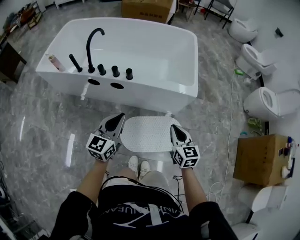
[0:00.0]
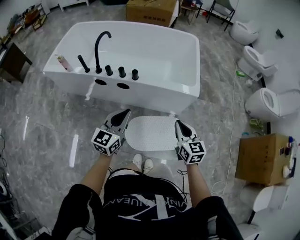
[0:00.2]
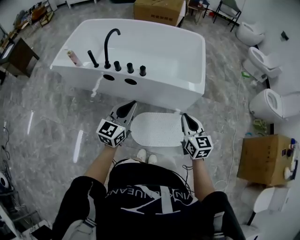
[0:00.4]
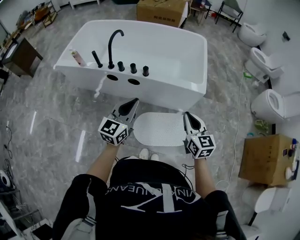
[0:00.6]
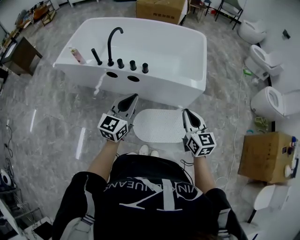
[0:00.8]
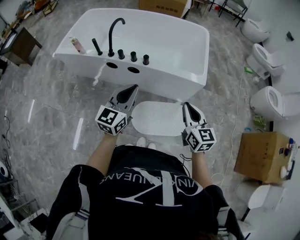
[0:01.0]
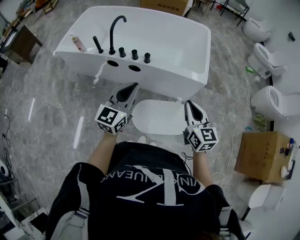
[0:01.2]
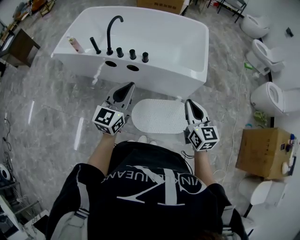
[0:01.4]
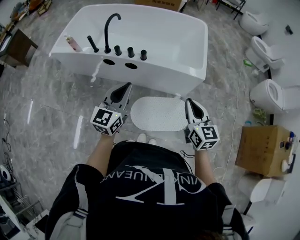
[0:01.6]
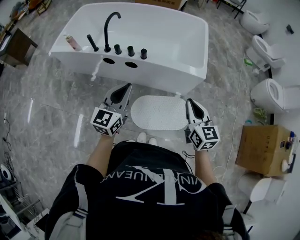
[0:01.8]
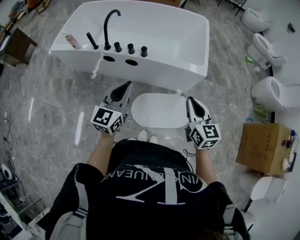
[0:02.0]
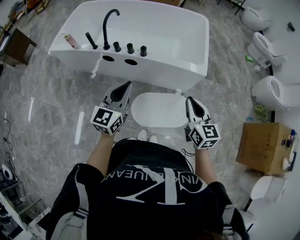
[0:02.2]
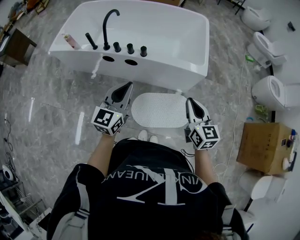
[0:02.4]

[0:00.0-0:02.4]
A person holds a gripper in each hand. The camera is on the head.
0.0 to 1.2 s: The two grippers go approximately 15 cm upward.
1.2 to 2.4 s: There are only small adjustments of the grippers.

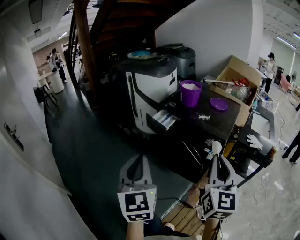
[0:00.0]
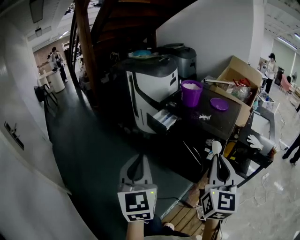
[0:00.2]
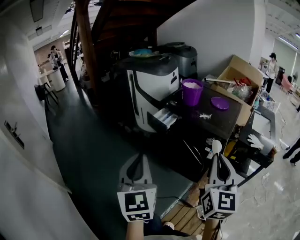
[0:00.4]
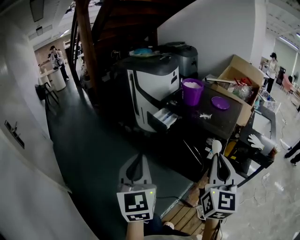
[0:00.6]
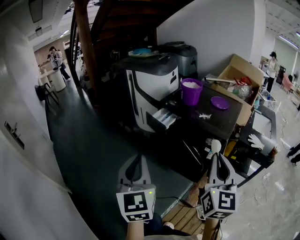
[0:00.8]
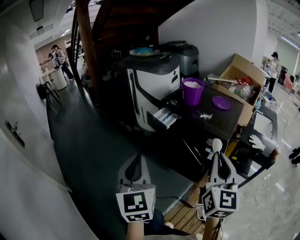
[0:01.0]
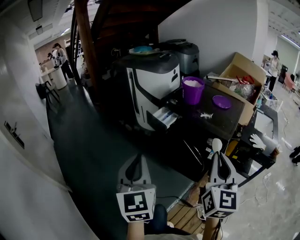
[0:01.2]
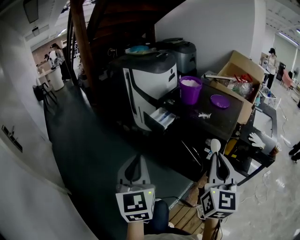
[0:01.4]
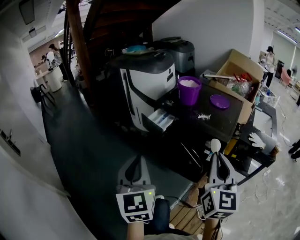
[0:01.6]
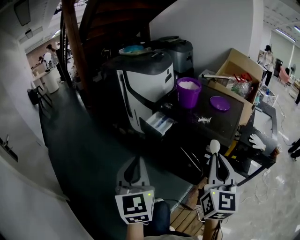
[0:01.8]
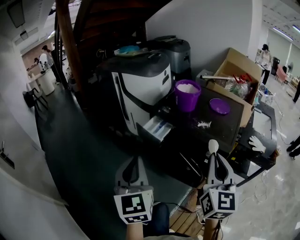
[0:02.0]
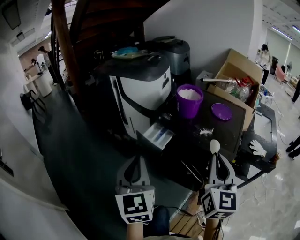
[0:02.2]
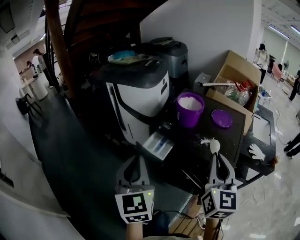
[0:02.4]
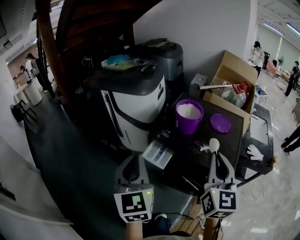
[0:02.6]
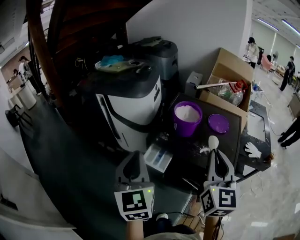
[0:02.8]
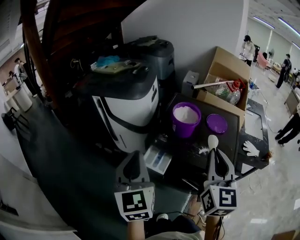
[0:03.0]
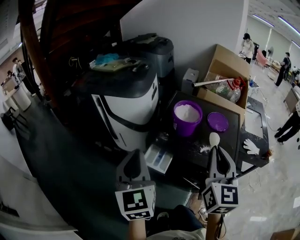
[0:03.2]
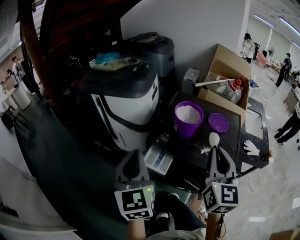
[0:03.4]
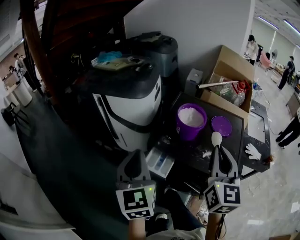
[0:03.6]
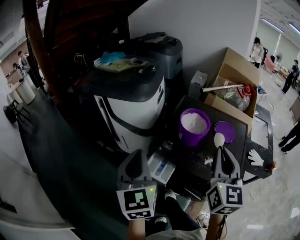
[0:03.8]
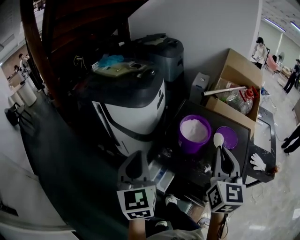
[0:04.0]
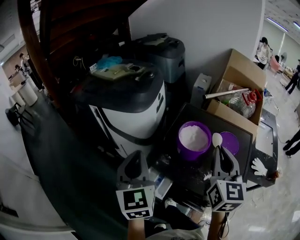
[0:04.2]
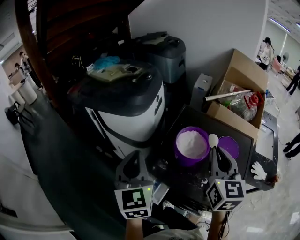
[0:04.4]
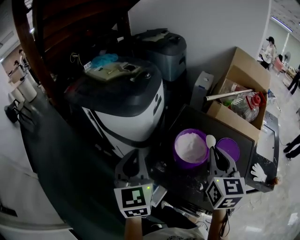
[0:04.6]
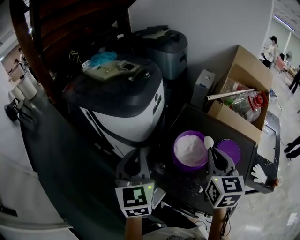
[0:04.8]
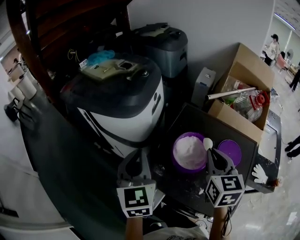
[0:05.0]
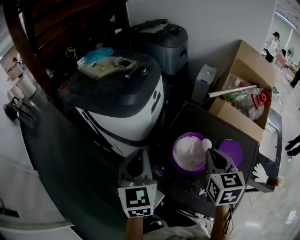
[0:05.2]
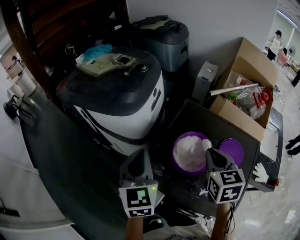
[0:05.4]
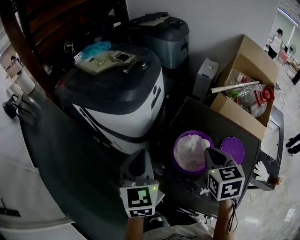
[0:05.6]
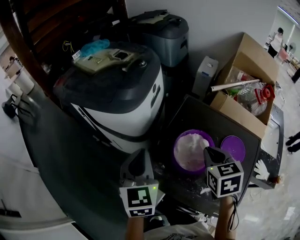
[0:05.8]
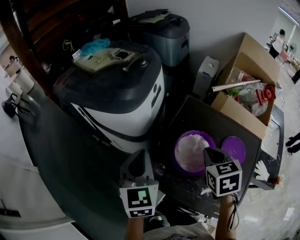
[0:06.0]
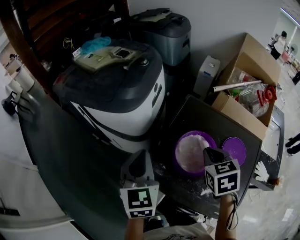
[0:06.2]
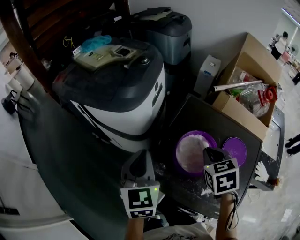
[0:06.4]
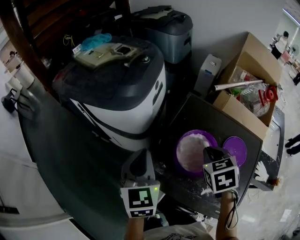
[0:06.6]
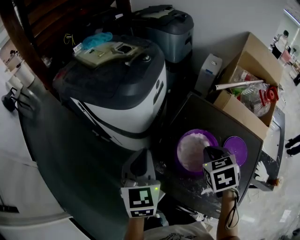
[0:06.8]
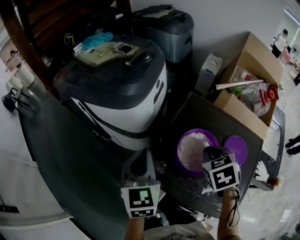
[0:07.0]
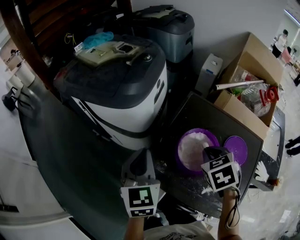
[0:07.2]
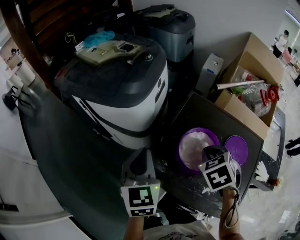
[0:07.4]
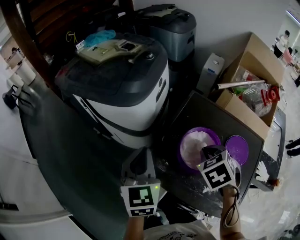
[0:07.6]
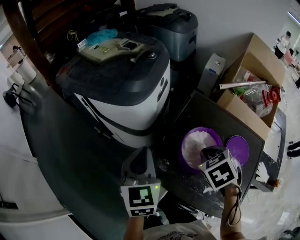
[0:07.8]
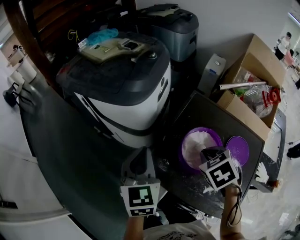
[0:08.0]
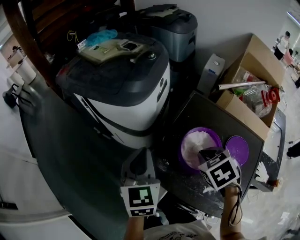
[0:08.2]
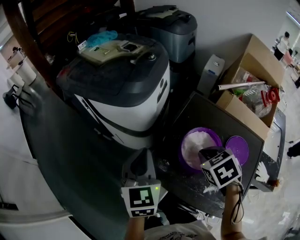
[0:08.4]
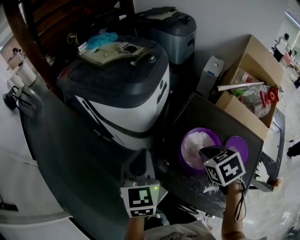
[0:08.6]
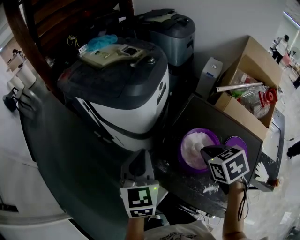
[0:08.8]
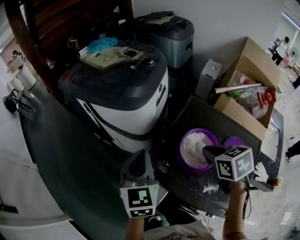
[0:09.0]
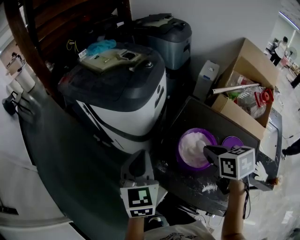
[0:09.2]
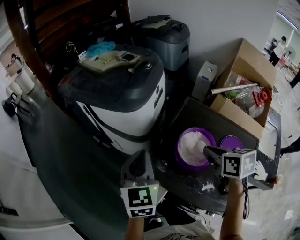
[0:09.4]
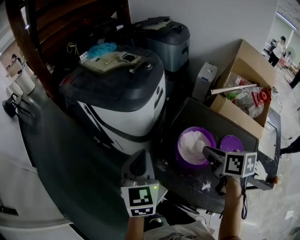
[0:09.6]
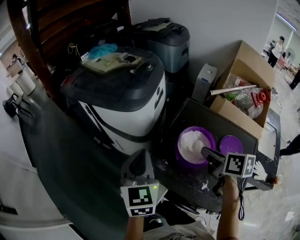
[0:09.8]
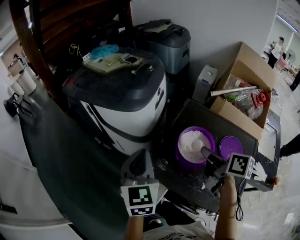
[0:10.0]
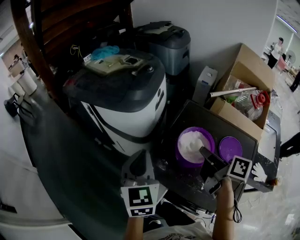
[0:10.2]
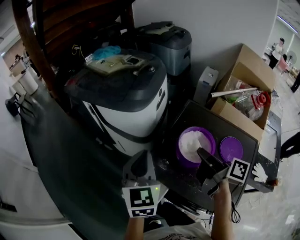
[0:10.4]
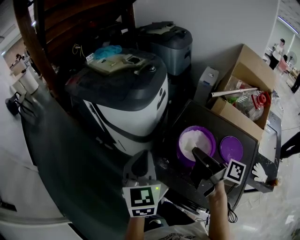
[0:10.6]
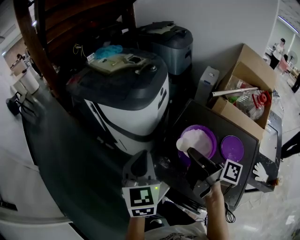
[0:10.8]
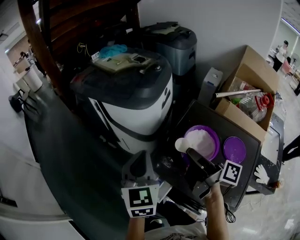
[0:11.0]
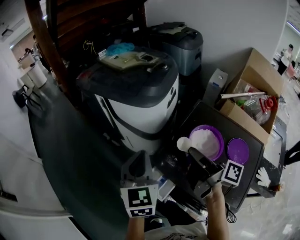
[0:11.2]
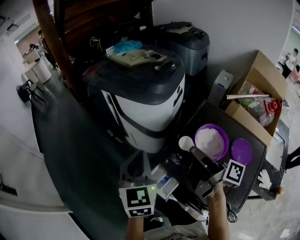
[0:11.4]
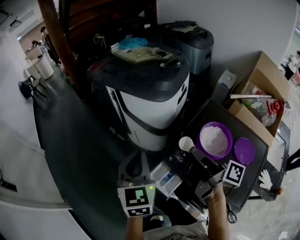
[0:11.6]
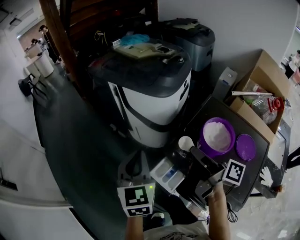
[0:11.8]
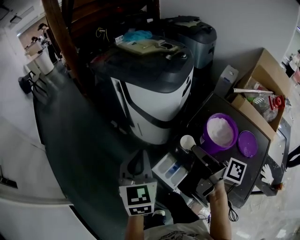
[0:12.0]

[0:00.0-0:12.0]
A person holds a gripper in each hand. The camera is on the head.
0.0 to 1.6 s: The two grippers go about 5 cm forward.
1.6 to 3.0 s: The grippers both shift forward by about 30 cm.
3.0 to 4.4 s: Both grippers travel together forward, about 20 cm.
4.4 to 6.0 s: The right gripper goes approximately 15 cm downward and forward, and tilts its fingers approximately 40 degrees downward, while the left gripper heads forward and downward, covering approximately 10 cm.
6.0 to 7.6 s: The right gripper swivels about 30 degrees.
7.6 to 9.0 s: The right gripper changes its angle by about 30 degrees.
9.0 to 10.4 s: The right gripper moves approximately 5 cm, and points its fingers about 40 degrees further upward.
10.4 to 12.0 s: Both grippers travel together to the left, about 15 cm.

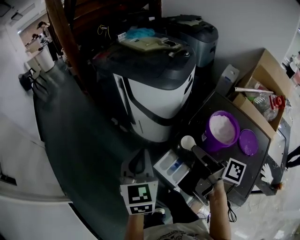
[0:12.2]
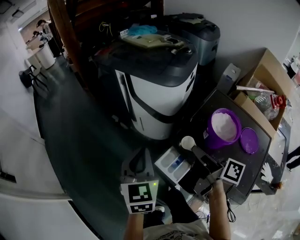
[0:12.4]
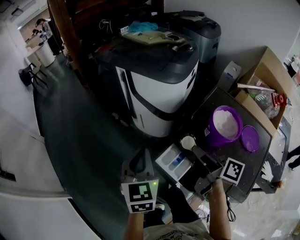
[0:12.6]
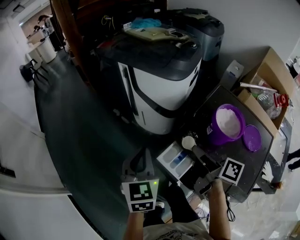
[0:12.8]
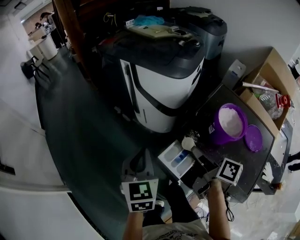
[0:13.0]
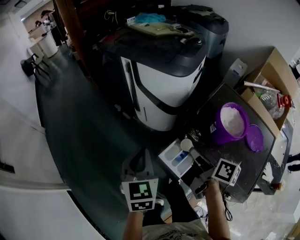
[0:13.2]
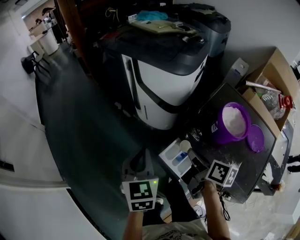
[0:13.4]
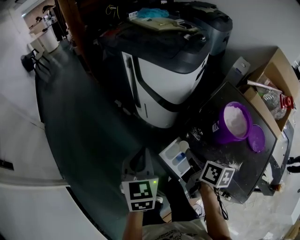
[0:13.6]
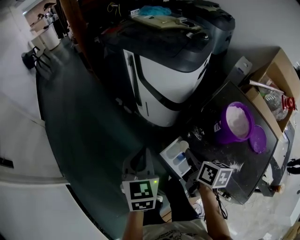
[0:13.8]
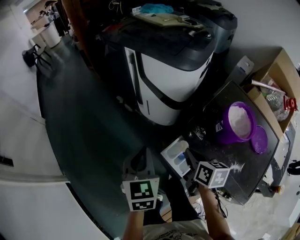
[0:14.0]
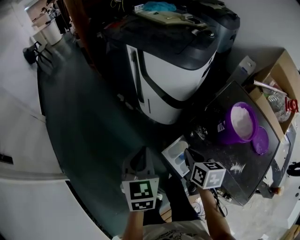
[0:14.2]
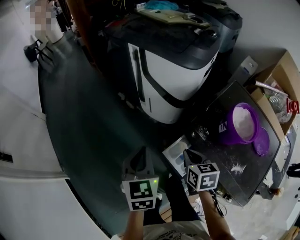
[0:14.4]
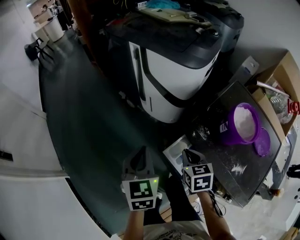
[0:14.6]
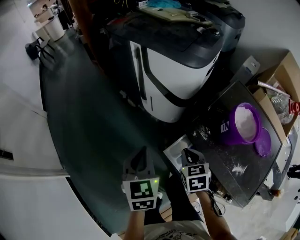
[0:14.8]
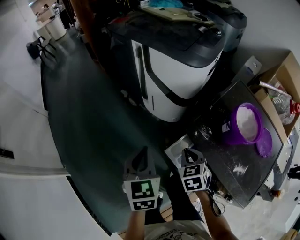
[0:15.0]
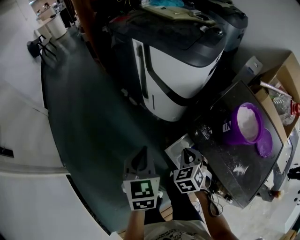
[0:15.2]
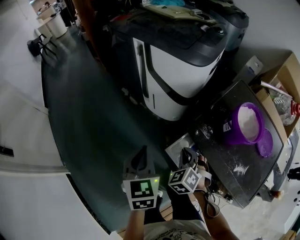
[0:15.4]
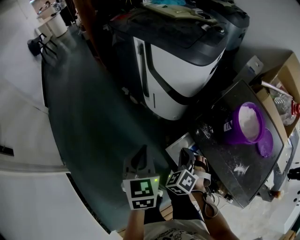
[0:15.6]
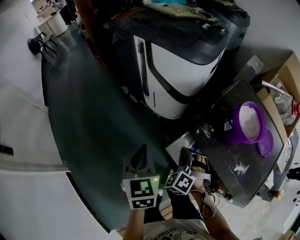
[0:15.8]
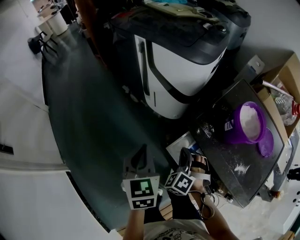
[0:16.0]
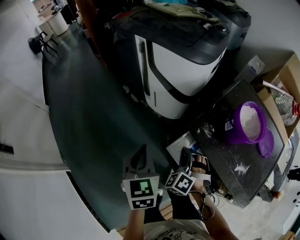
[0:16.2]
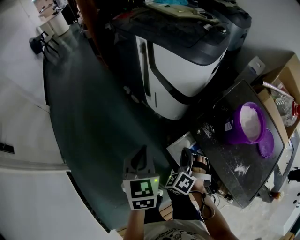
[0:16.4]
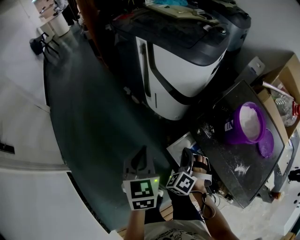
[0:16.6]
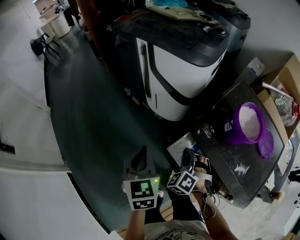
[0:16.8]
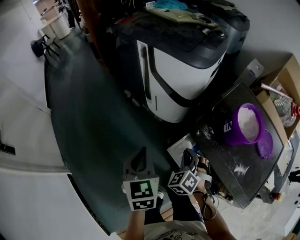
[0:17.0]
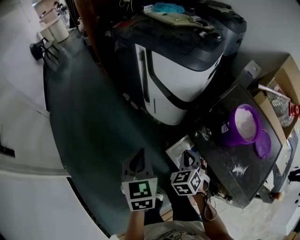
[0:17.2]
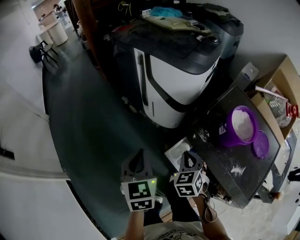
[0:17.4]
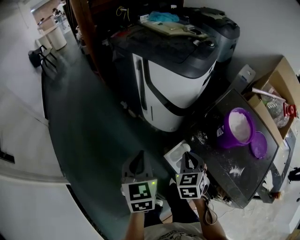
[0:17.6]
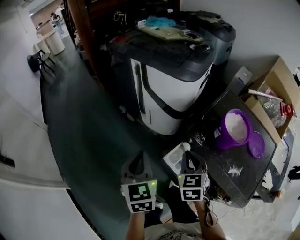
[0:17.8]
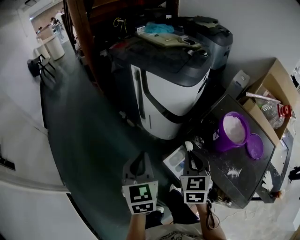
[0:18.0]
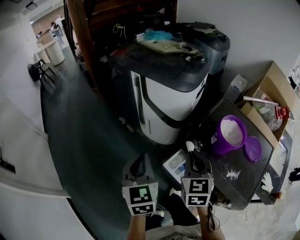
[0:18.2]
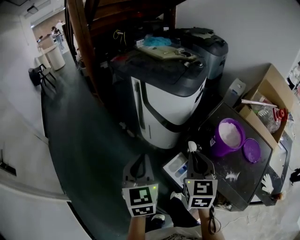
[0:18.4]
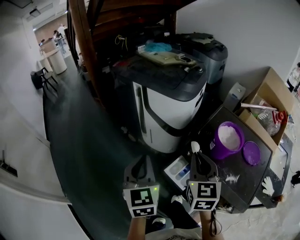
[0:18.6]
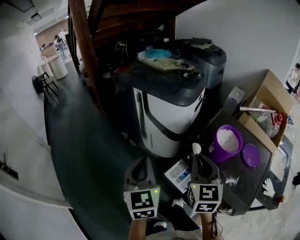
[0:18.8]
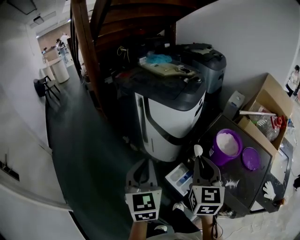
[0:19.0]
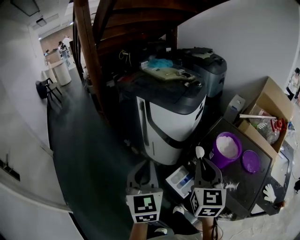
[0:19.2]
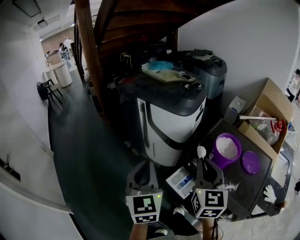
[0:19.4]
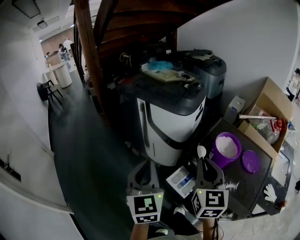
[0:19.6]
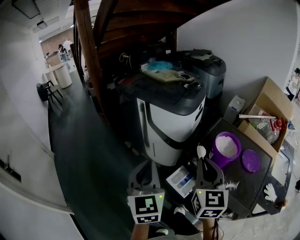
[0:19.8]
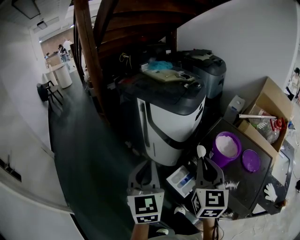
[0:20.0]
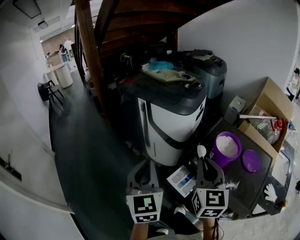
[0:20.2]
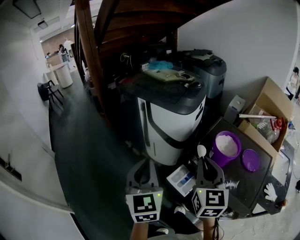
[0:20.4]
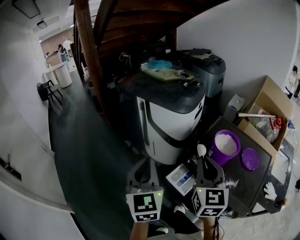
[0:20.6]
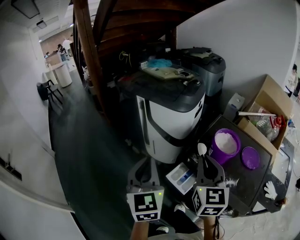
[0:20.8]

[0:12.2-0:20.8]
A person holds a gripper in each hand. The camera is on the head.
12.2 to 13.6 s: The left gripper goes approximately 5 cm downward; the right gripper goes some 10 cm downward, and changes its angle by approximately 40 degrees.
13.6 to 15.0 s: The right gripper travels downward by roughly 10 cm, and rotates around the line of its fingers by about 50 degrees, counterclockwise from behind.
15.0 to 16.6 s: The right gripper rolls counterclockwise, seen from behind, by approximately 50 degrees.
16.6 to 18.0 s: The left gripper heads upward, covering approximately 5 cm. The right gripper goes about 15 cm upward, and rotates around the line of its fingers by some 50 degrees, clockwise from behind.
18.0 to 19.4 s: Both grippers move upward, roughly 15 cm. The right gripper turns by approximately 20 degrees.
19.4 to 20.8 s: The grippers stay close to where they were, moving slightly.

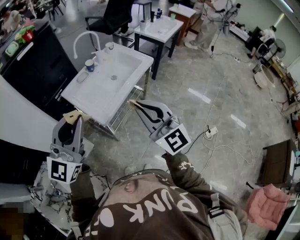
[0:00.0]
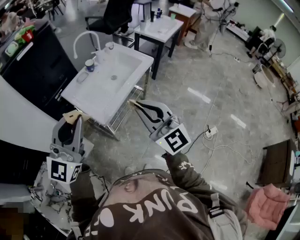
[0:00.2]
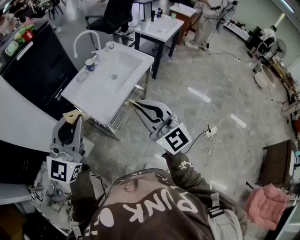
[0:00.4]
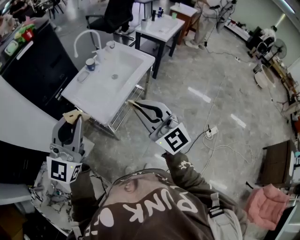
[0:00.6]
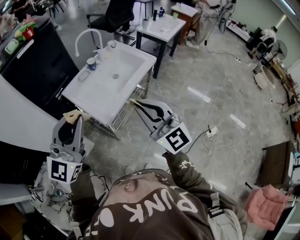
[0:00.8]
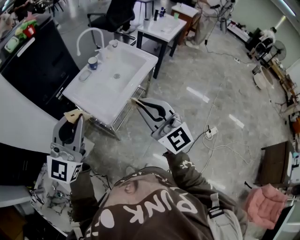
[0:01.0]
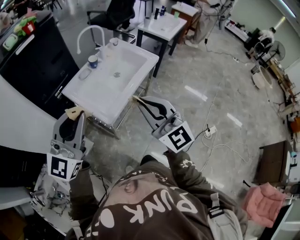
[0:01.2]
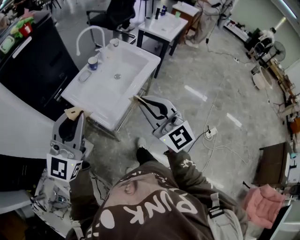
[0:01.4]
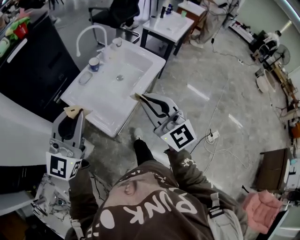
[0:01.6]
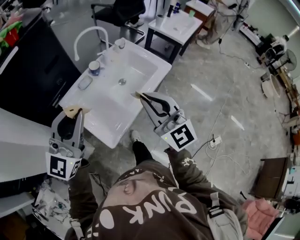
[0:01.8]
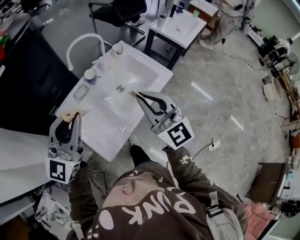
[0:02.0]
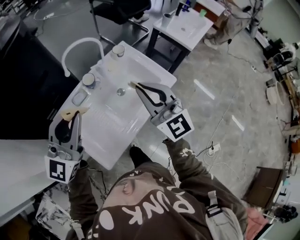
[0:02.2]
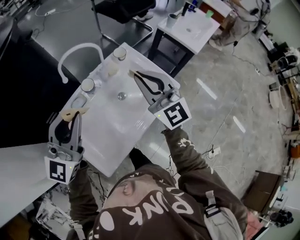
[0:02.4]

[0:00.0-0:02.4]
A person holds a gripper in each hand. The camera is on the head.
0.0 to 1.2 s: The left gripper shifts by roughly 5 cm. Meanwhile the right gripper ends up some 5 cm from where it was.
1.2 to 2.4 s: Both grippers travel together forward, about 40 cm.
